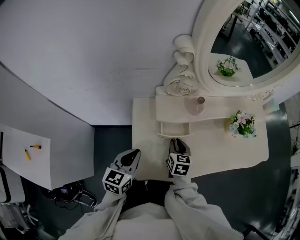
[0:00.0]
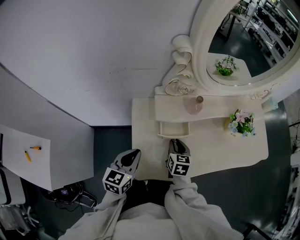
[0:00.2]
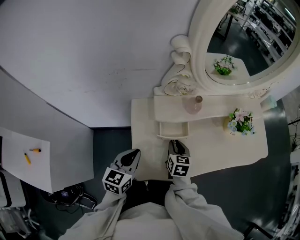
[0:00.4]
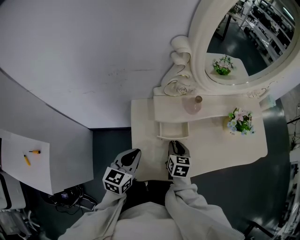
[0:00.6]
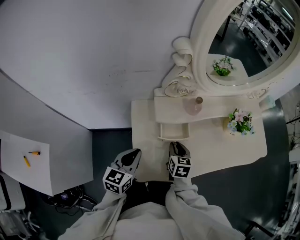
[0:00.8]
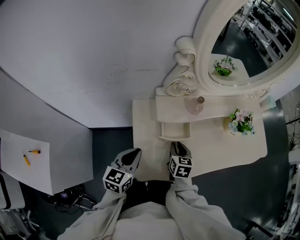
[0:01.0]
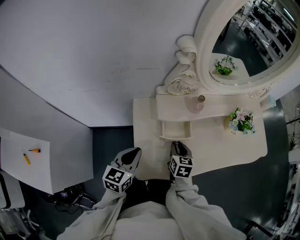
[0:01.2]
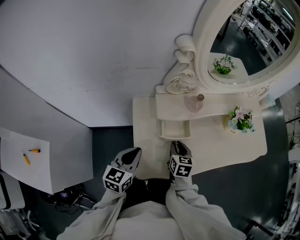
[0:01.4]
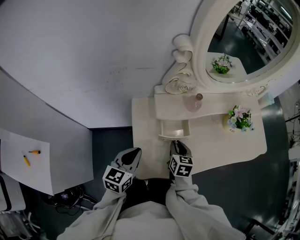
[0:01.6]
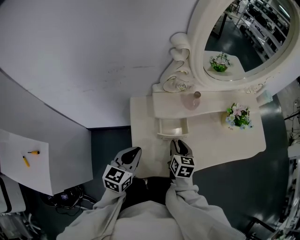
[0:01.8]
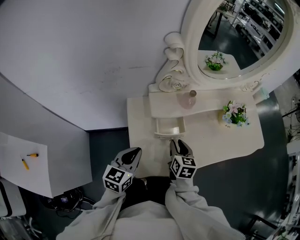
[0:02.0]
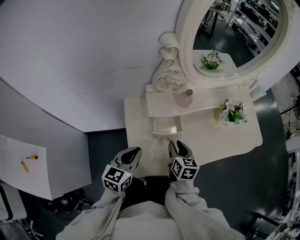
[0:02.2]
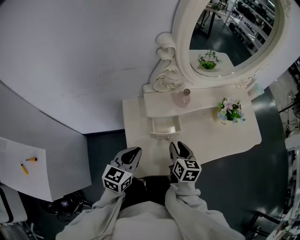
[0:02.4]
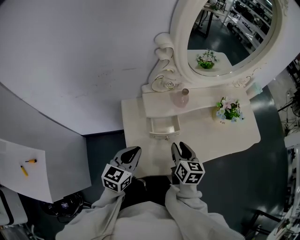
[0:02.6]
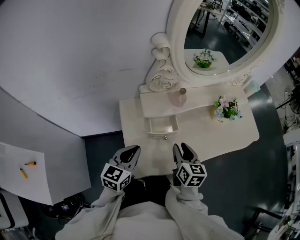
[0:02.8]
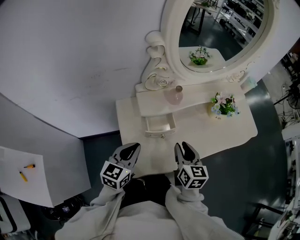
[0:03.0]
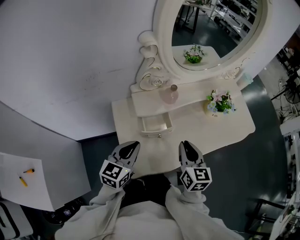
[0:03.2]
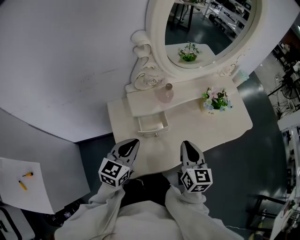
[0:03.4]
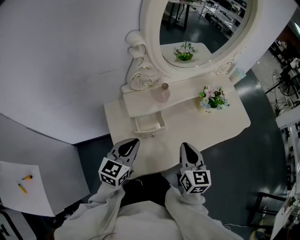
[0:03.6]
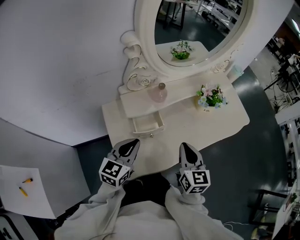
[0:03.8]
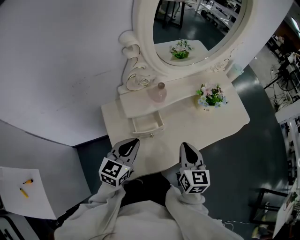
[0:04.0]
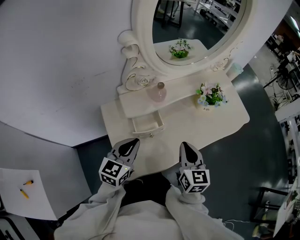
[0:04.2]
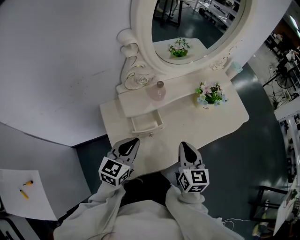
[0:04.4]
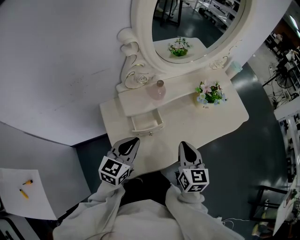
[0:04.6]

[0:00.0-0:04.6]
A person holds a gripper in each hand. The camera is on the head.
0:00.0 to 0:01.6: There are only small adjustments of the grippers.
0:01.6 to 0:03.0: The right gripper goes roughly 15 cm upward and to the right, while the left gripper moves some 5 cm.
0:03.0 to 0:04.6: The left gripper changes place by some 5 cm. The right gripper goes approximately 5 cm to the right, and closes.

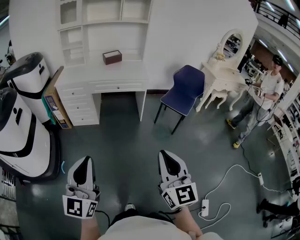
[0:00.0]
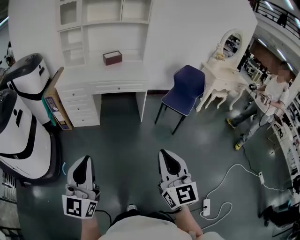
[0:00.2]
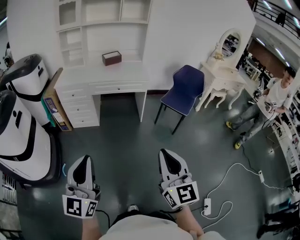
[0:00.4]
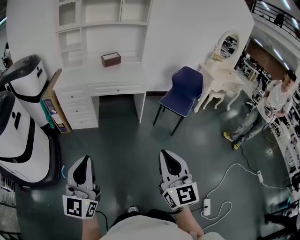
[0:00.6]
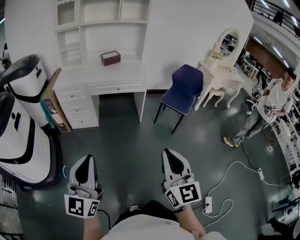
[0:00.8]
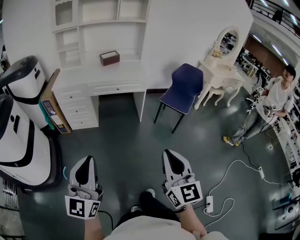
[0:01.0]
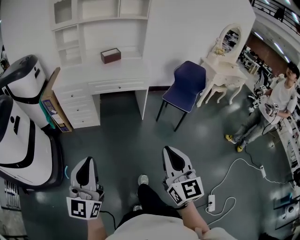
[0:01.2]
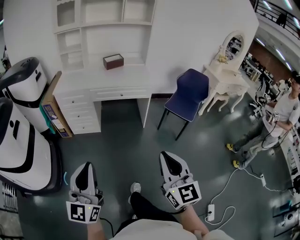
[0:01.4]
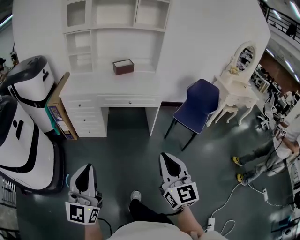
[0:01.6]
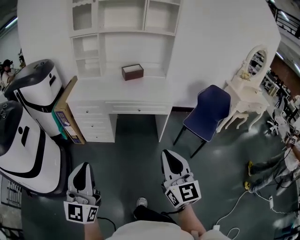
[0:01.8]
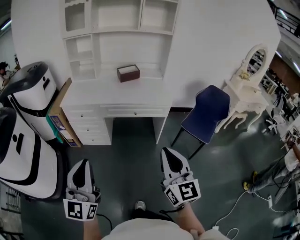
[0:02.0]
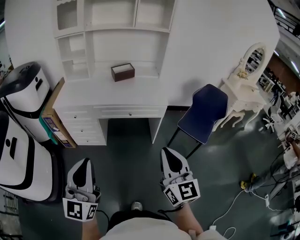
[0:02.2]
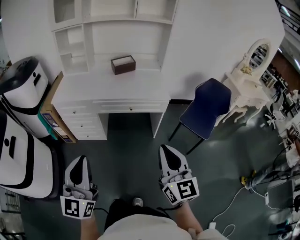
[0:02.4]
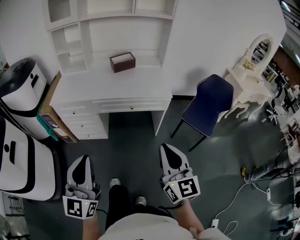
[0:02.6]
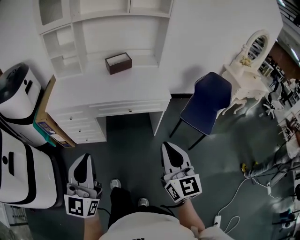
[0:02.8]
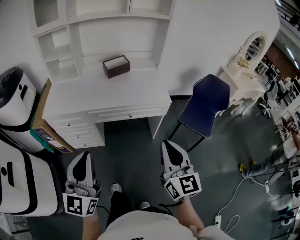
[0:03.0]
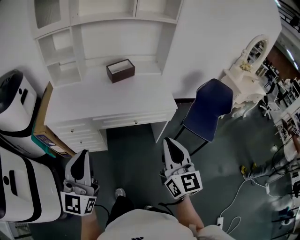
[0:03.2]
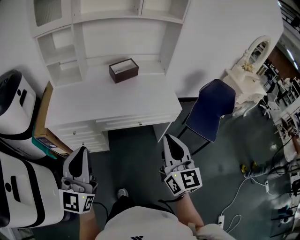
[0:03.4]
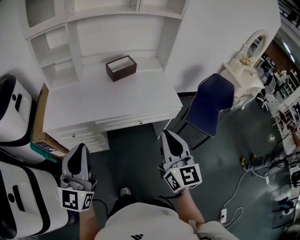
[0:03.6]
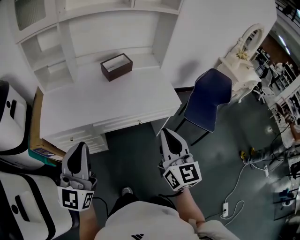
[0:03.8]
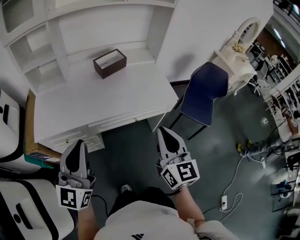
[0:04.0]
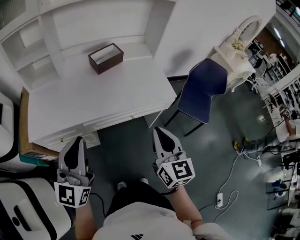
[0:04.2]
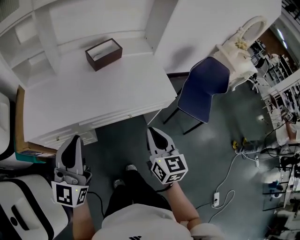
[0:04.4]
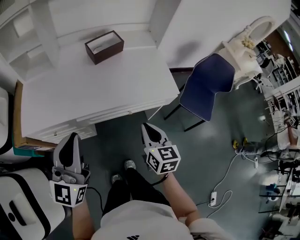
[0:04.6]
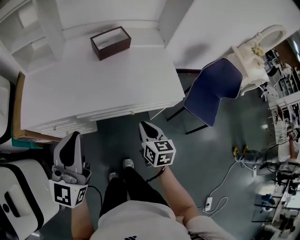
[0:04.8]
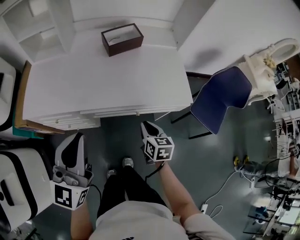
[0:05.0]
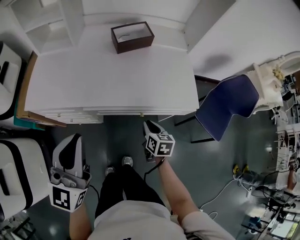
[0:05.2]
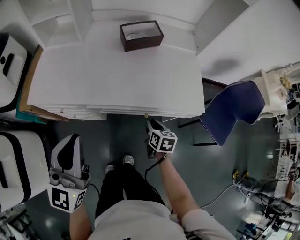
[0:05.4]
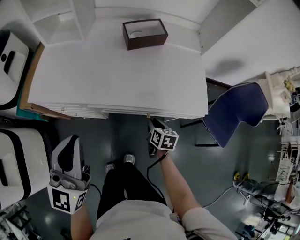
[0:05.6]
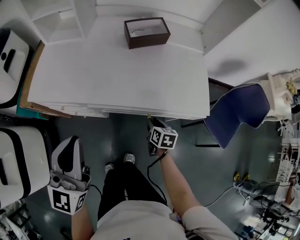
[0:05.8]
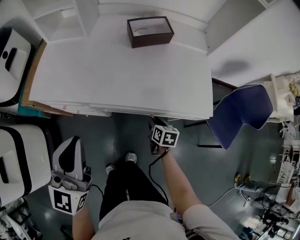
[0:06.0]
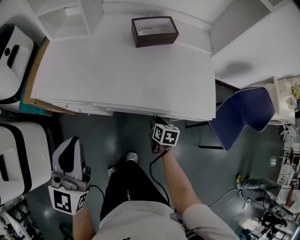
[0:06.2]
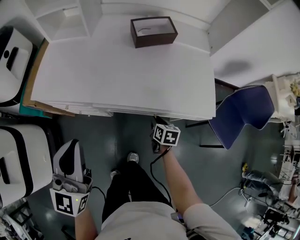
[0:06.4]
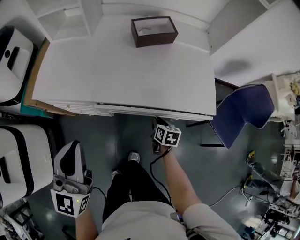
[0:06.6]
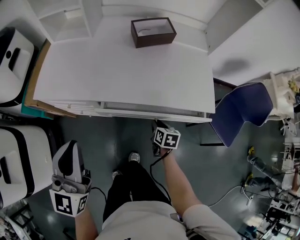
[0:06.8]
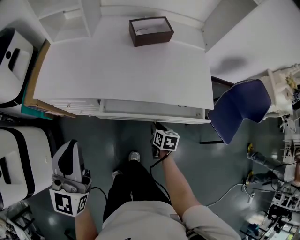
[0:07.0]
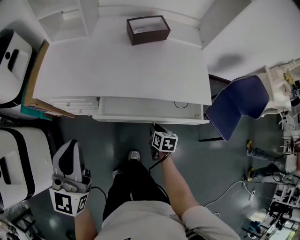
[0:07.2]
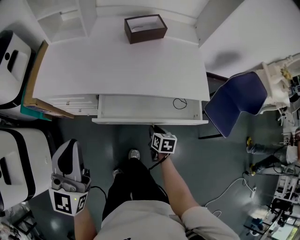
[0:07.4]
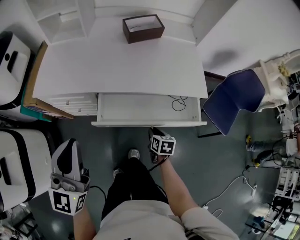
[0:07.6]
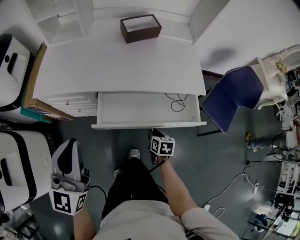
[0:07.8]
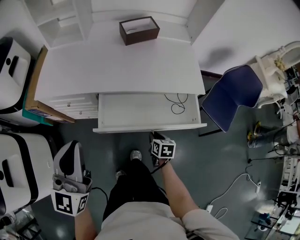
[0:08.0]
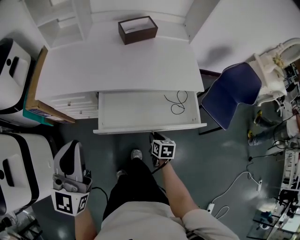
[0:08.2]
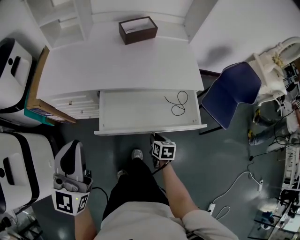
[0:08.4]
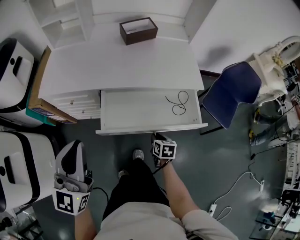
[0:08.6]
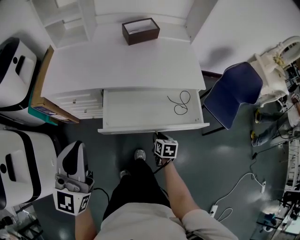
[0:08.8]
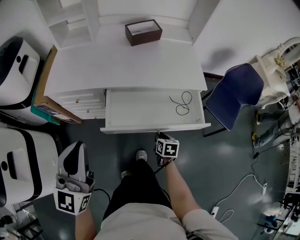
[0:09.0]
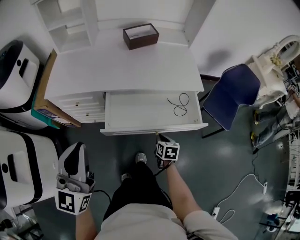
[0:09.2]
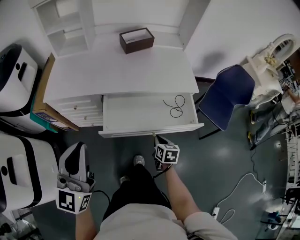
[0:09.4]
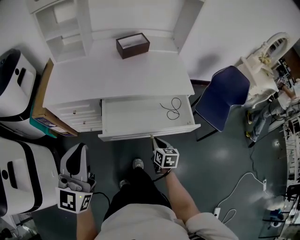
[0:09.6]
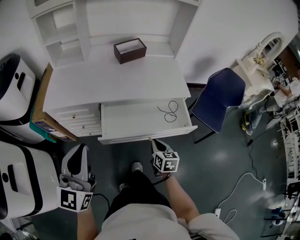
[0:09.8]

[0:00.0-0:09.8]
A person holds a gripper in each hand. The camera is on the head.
0:00.0 to 0:01.4: The two grippers go about 10 cm forward and to the left.
0:01.4 to 0:02.8: The two grippers go some 30 cm forward.
0:02.8 to 0:04.2: Both grippers travel together forward and to the left, some 25 cm.
0:04.2 to 0:05.6: The right gripper is displaced downward and forward by roughly 35 cm, tips its fingers downward by approximately 40 degrees, and opens up, while the left gripper moves some 5 cm, and changes its angle by roughly 20 degrees.
0:05.6 to 0:07.0: The left gripper moves roughly 5 cm; the right gripper changes place by approximately 5 cm.
0:07.0 to 0:08.4: The right gripper shifts about 15 cm backward. The left gripper moves backward, about 10 cm.
0:08.4 to 0:09.8: The right gripper goes roughly 10 cm upward.

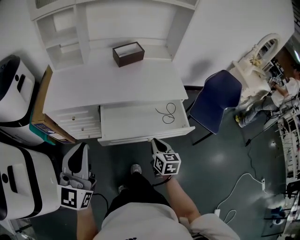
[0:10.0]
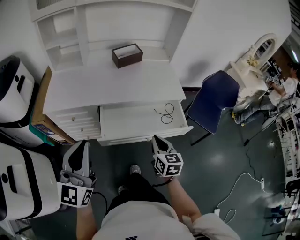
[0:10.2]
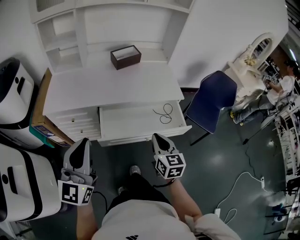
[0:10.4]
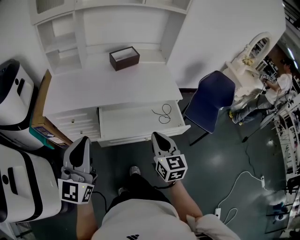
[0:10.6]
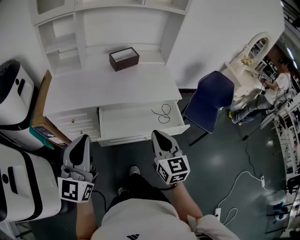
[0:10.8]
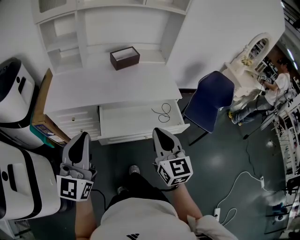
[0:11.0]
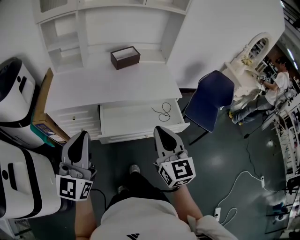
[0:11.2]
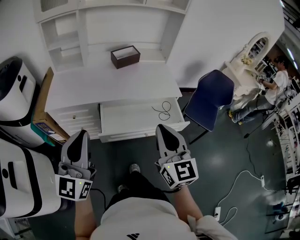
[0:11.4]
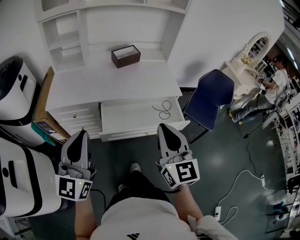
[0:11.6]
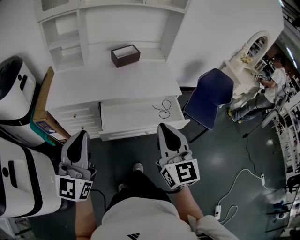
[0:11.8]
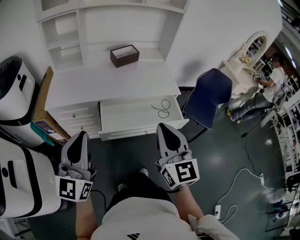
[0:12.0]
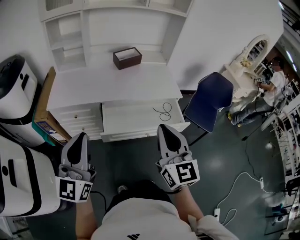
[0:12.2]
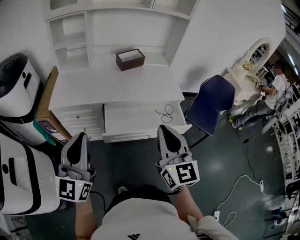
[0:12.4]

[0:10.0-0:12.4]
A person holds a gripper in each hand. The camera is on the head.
0:10.0 to 0:11.2: The right gripper is displaced upward by about 20 cm, and turns by roughly 30 degrees.
0:11.2 to 0:12.4: There are only small adjustments of the grippers.
